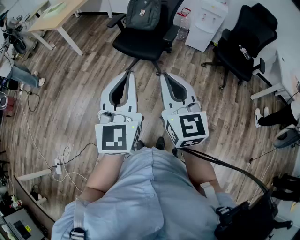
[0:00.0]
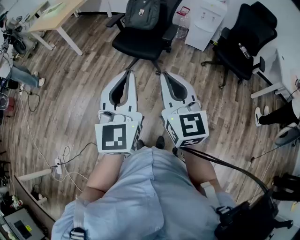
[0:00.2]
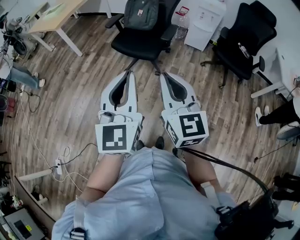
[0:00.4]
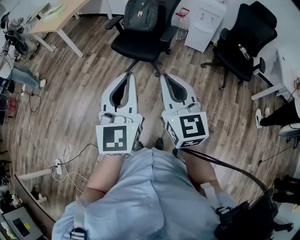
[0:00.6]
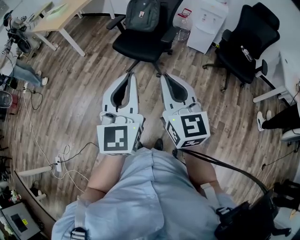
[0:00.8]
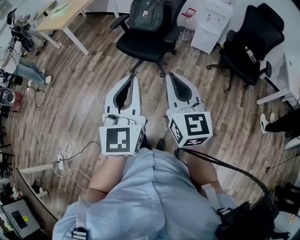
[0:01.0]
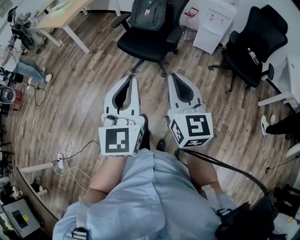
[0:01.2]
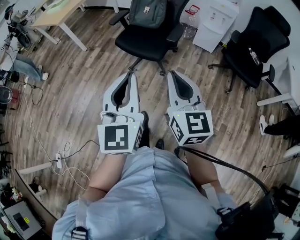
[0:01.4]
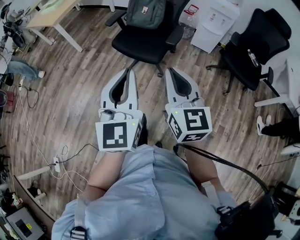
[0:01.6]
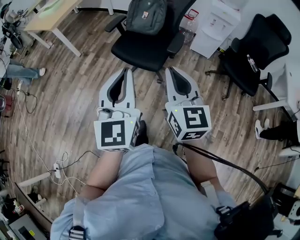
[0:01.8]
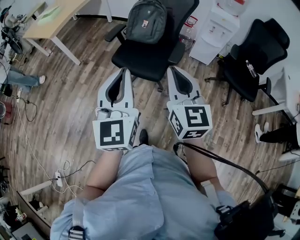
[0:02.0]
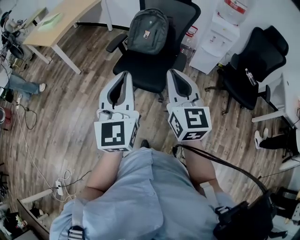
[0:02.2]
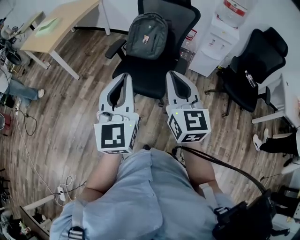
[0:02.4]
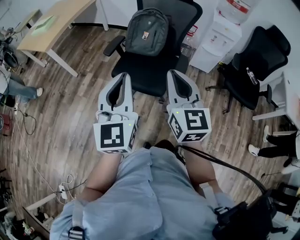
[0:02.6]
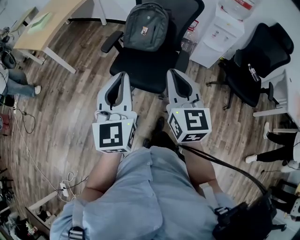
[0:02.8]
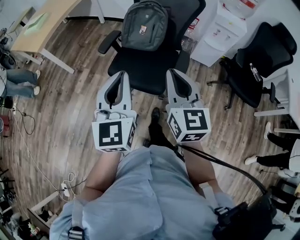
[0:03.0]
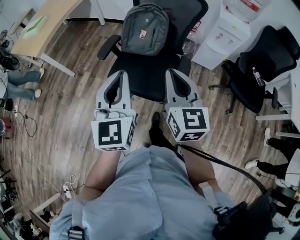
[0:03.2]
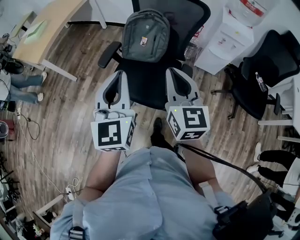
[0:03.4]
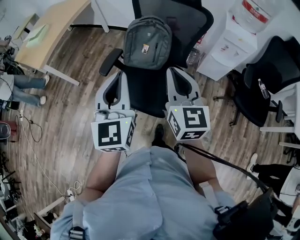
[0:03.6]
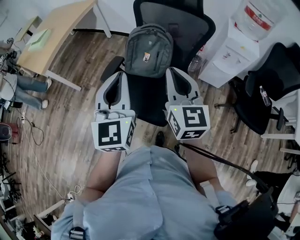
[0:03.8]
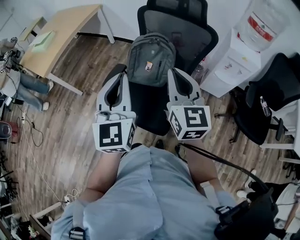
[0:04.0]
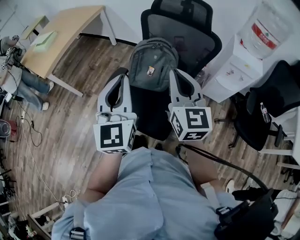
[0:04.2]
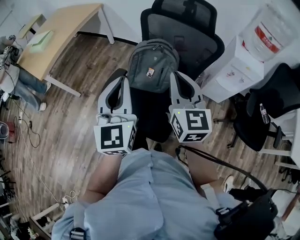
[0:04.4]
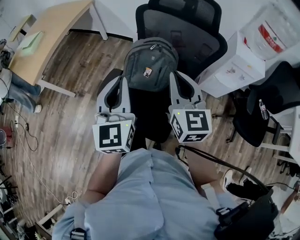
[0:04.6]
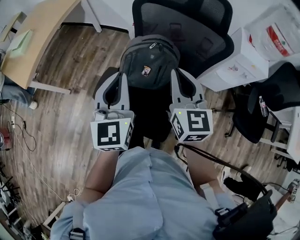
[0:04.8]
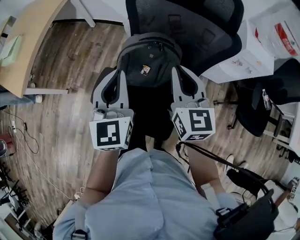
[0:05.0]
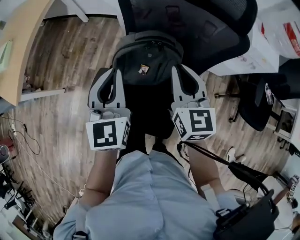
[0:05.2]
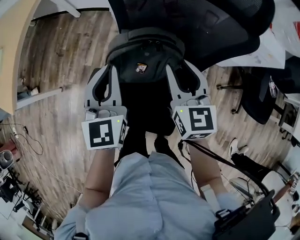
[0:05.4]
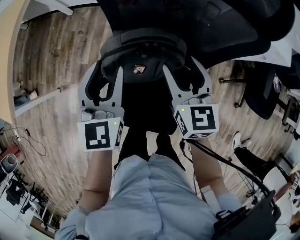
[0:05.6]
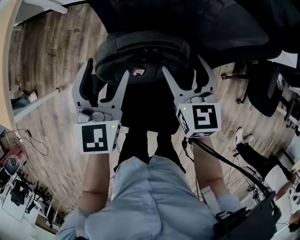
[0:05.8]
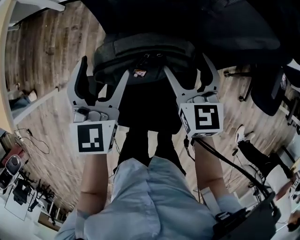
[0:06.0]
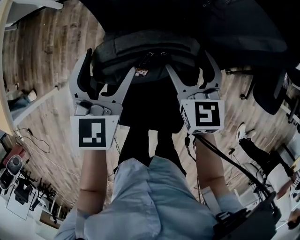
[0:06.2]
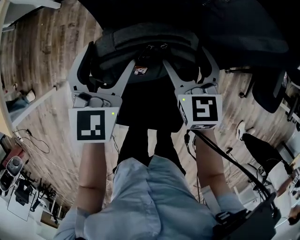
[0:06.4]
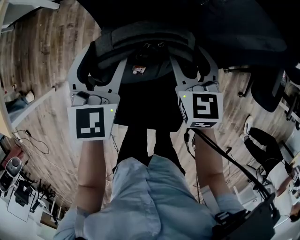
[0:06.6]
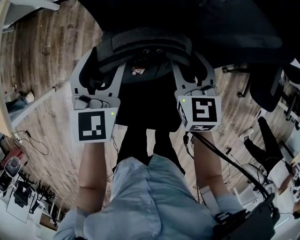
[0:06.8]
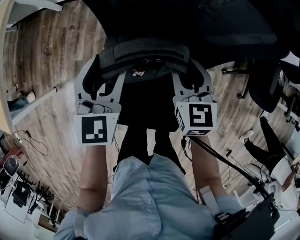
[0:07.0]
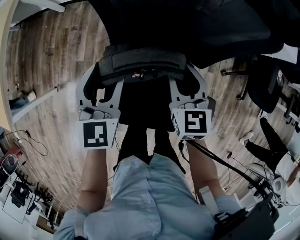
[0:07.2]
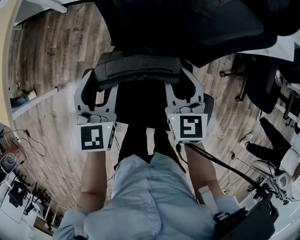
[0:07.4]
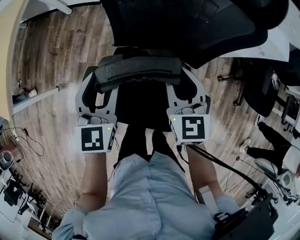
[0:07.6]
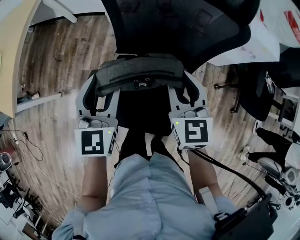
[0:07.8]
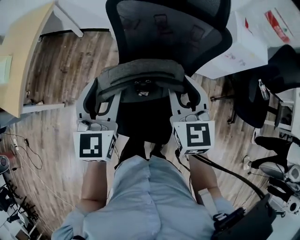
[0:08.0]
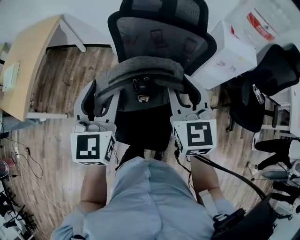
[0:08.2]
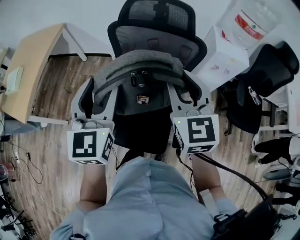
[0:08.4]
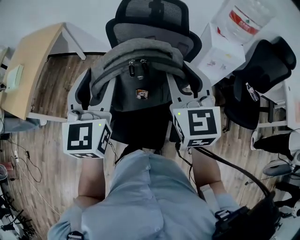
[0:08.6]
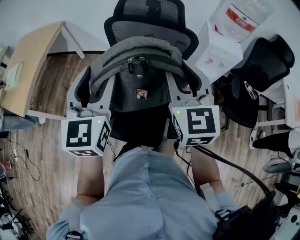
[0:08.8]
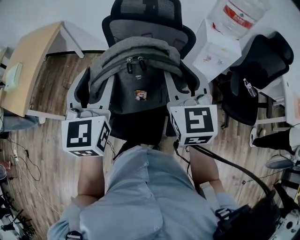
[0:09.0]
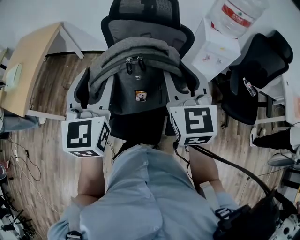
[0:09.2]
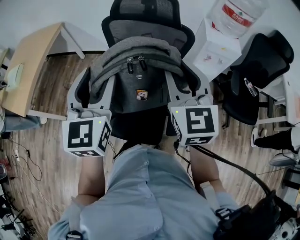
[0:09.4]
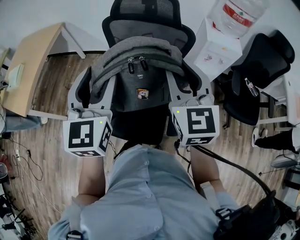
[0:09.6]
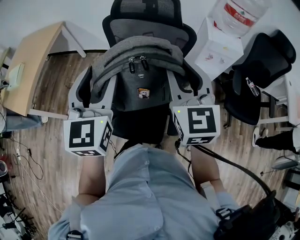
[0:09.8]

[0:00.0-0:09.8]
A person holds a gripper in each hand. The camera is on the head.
0.0 to 1.4 s: The right gripper shifts some 10 cm forward and to the right; the left gripper shifts roughly 5 cm forward.
1.4 to 2.8 s: Both grippers move forward, some 30 cm.
2.8 to 4.2 s: Both grippers move forward, approximately 30 cm.
4.2 to 5.6 s: Both grippers travel together forward and downward, approximately 35 cm. The right gripper rotates some 30 degrees, and opens up, while the left gripper changes its angle by roughly 30 degrees, and opens.
5.6 to 7.0 s: Both grippers travel together downward, roughly 5 cm. The left gripper opens, then closes again.
7.0 to 8.4 s: The grippers both shift upward and backward by roughly 35 cm. The left gripper changes its angle by approximately 20 degrees. Meanwhile the right gripper turns by about 30 degrees.
8.4 to 9.8 s: The left gripper changes place by some 5 cm; the right gripper is displaced backward by roughly 5 cm.

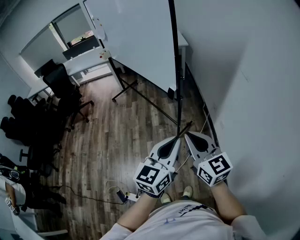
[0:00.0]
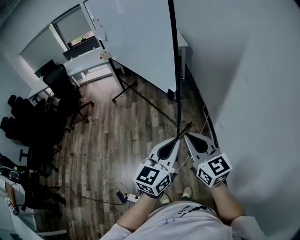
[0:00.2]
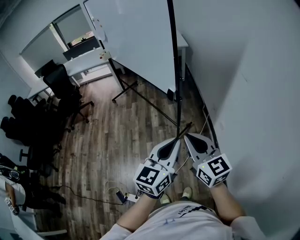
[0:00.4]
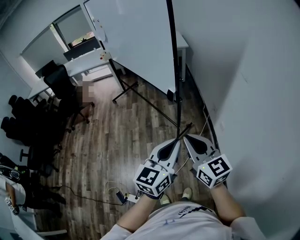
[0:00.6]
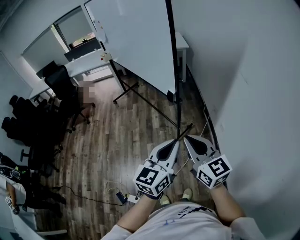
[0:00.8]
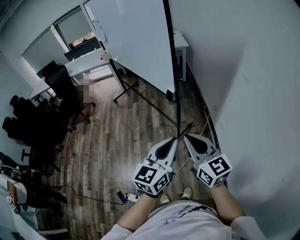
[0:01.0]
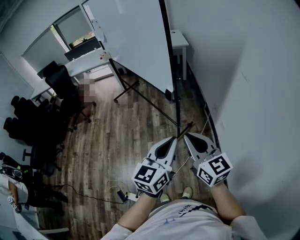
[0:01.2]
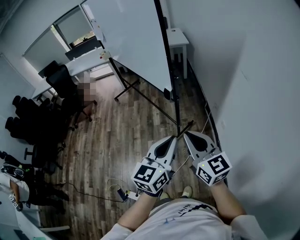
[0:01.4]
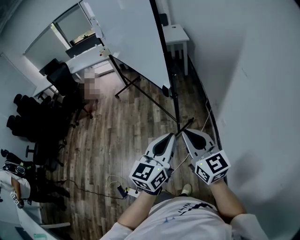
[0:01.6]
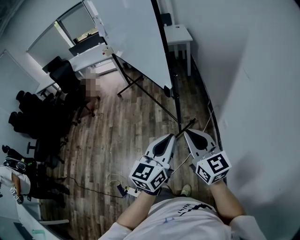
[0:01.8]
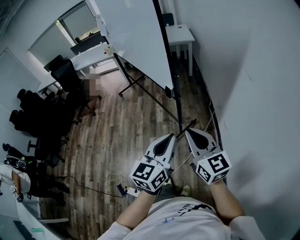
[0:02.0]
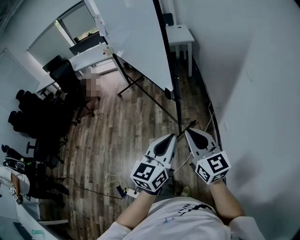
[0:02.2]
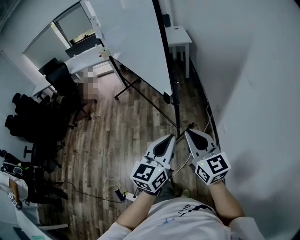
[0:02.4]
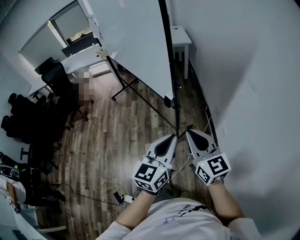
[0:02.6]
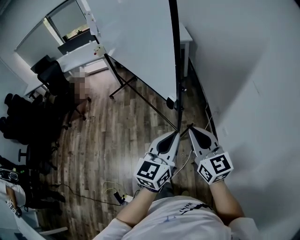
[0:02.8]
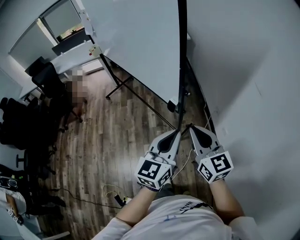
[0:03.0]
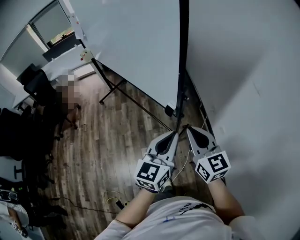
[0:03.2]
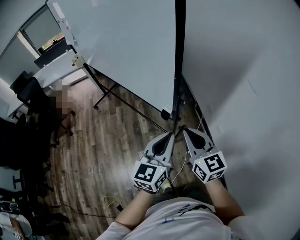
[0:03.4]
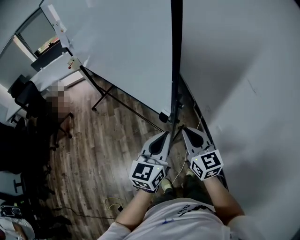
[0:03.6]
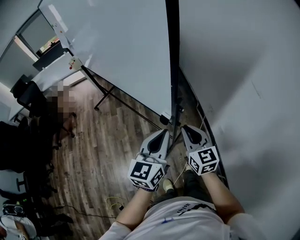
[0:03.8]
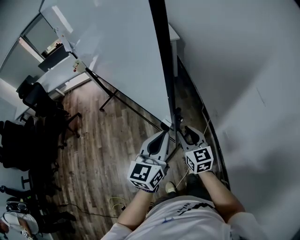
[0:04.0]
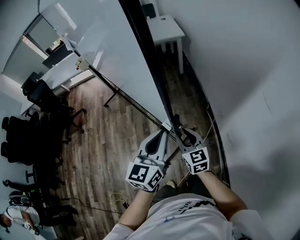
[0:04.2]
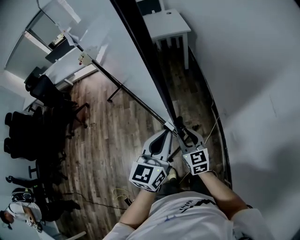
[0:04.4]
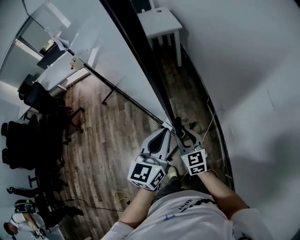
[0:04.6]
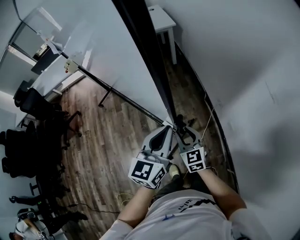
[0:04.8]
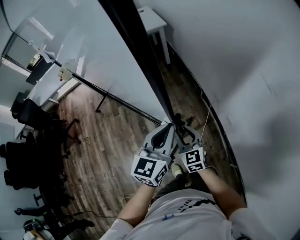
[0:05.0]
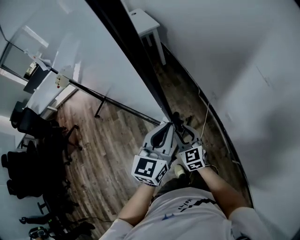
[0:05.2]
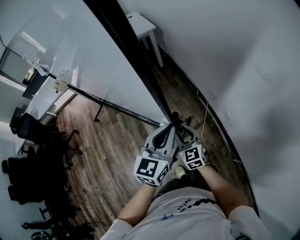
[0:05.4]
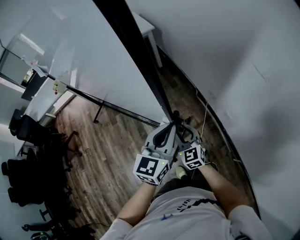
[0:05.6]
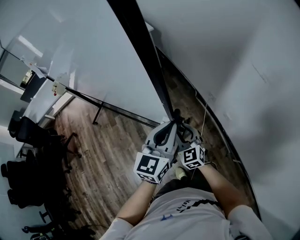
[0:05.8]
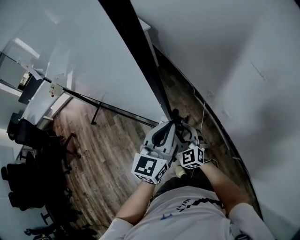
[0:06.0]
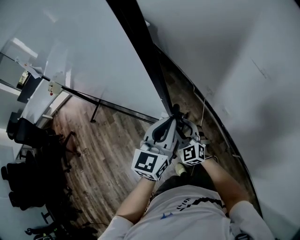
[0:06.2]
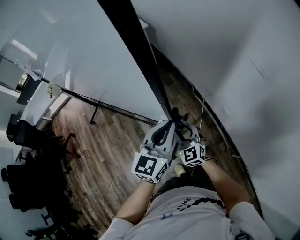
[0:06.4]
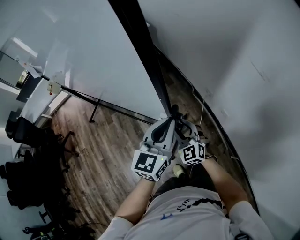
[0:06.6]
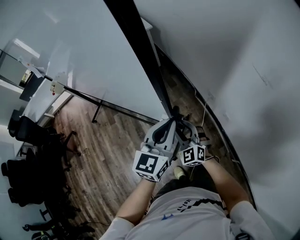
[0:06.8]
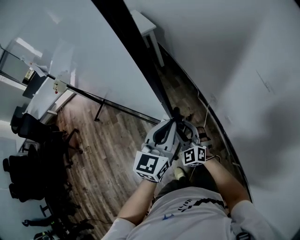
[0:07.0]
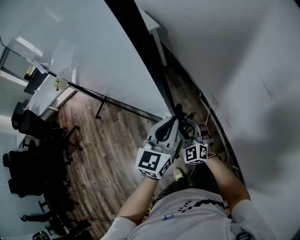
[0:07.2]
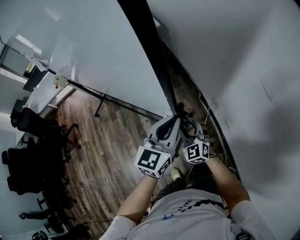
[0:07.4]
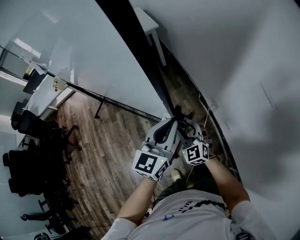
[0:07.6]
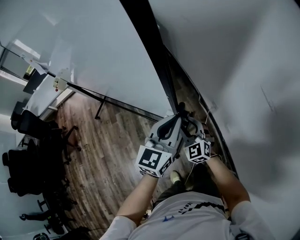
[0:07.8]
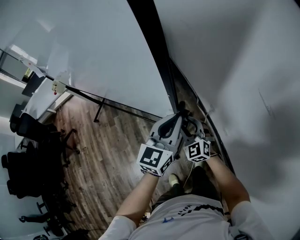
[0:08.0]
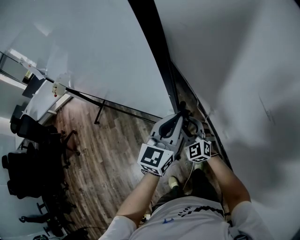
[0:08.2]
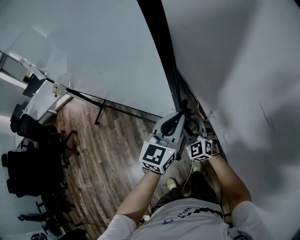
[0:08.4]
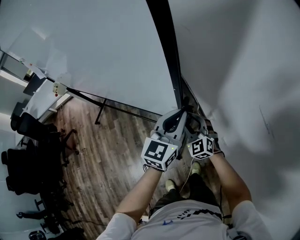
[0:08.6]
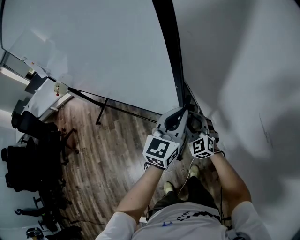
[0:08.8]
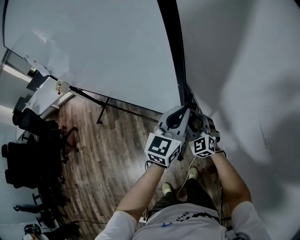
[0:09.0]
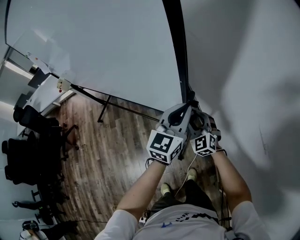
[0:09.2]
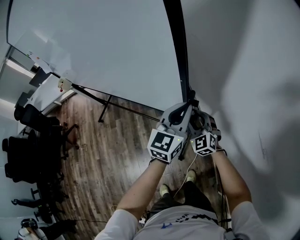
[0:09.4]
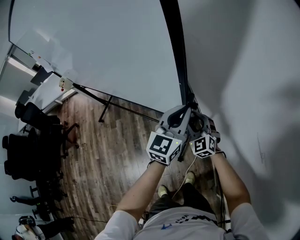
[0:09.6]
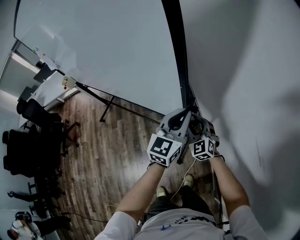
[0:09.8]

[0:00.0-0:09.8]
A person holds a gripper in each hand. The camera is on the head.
0.0 to 1.4 s: The grippers move only a little.
1.4 to 2.8 s: Both grippers move forward, roughly 15 cm.
2.8 to 4.2 s: The left gripper travels forward by approximately 20 cm. The right gripper moves forward and downward, about 30 cm, and opens its fingers.
4.2 to 5.6 s: The left gripper moves some 5 cm, and changes its angle by approximately 20 degrees. The right gripper shifts about 10 cm downward, and changes its angle by roughly 20 degrees.
5.6 to 7.0 s: The right gripper changes place by roughly 5 cm, and turns by some 20 degrees. Meanwhile the left gripper shifts roughly 5 cm forward.
7.0 to 8.4 s: Both grippers move forward and to the right, about 15 cm.
8.4 to 9.8 s: Both grippers travel together forward, roughly 10 cm.

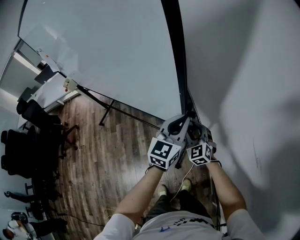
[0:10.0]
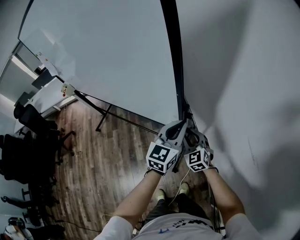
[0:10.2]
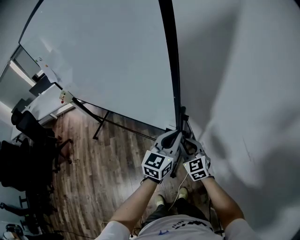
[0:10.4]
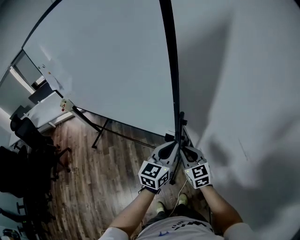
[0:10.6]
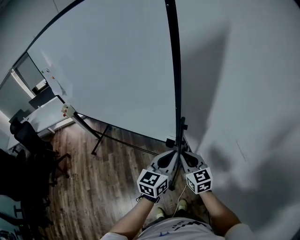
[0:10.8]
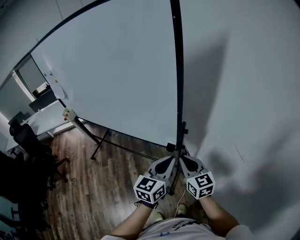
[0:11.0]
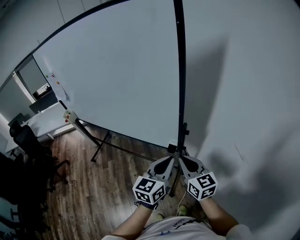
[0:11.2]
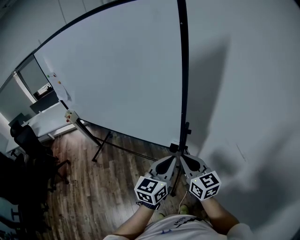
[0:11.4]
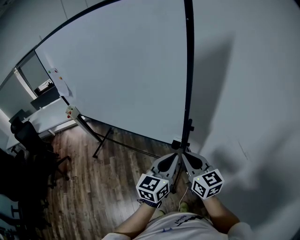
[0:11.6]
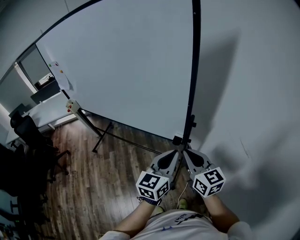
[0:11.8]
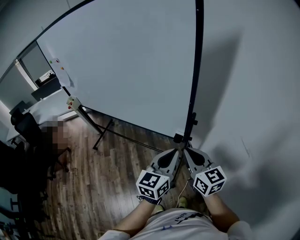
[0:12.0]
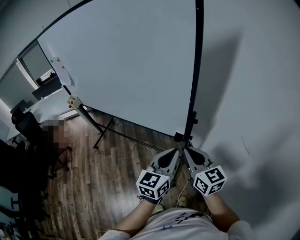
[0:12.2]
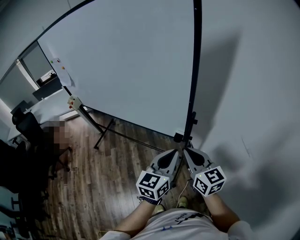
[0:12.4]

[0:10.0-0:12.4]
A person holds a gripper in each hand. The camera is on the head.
10.0 to 11.2 s: The left gripper heads backward and upward, covering roughly 20 cm; the right gripper heads upward and backward, covering roughly 30 cm, rotates roughly 40 degrees, and closes.
11.2 to 12.4 s: There are only small adjustments of the grippers.

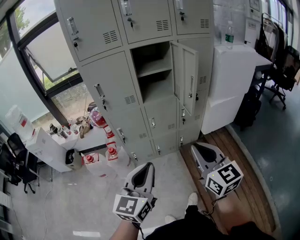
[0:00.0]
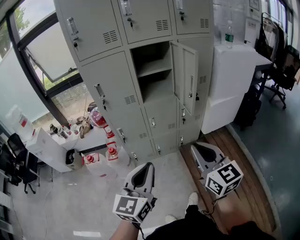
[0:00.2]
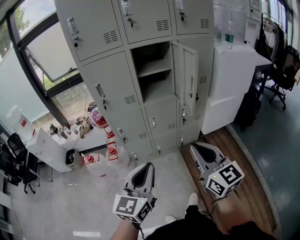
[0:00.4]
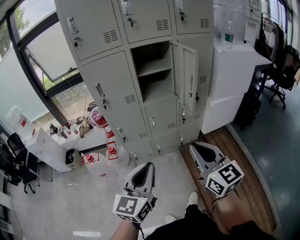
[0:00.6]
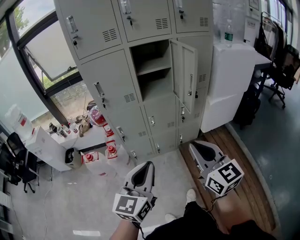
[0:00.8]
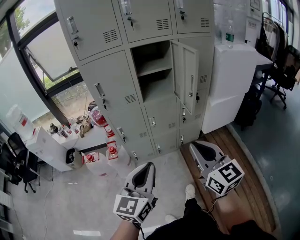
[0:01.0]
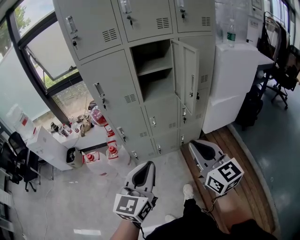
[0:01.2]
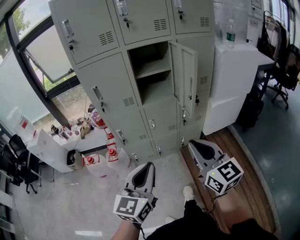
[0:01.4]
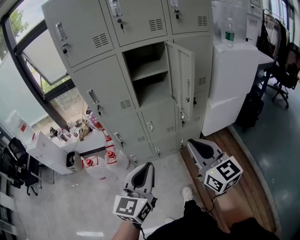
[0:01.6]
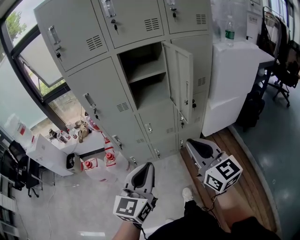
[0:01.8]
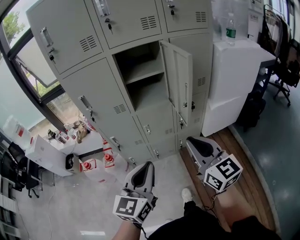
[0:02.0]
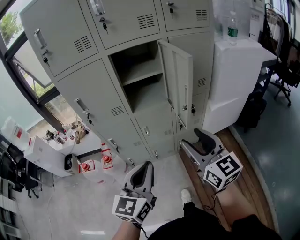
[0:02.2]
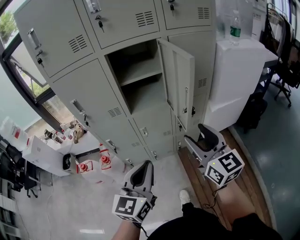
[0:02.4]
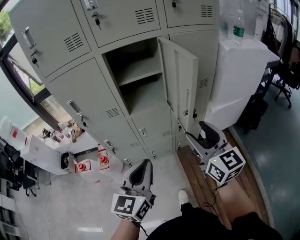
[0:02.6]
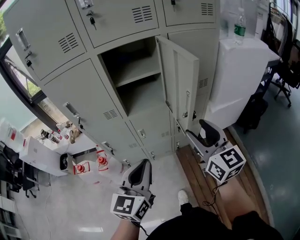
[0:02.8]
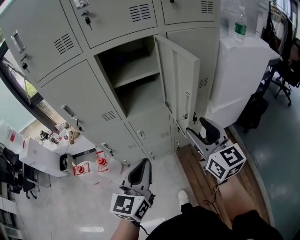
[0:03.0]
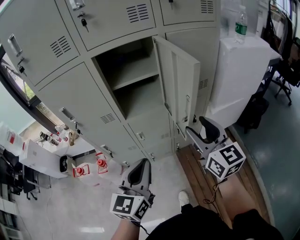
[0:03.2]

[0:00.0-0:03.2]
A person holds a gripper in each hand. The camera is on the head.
0.0 to 1.6 s: The right gripper shifts about 5 cm forward; the left gripper moves approximately 5 cm.
1.6 to 3.2 s: The left gripper shifts about 20 cm forward; the right gripper goes about 25 cm forward and to the right, and opens.
